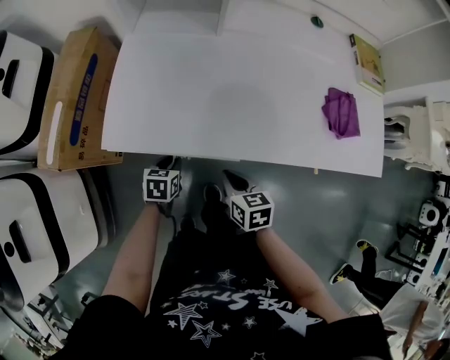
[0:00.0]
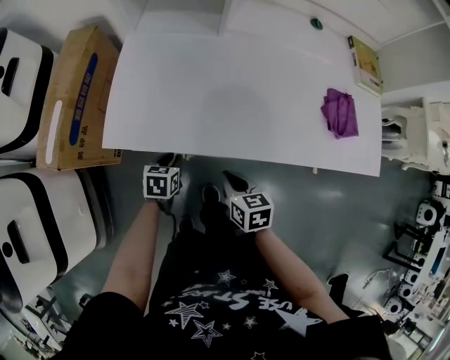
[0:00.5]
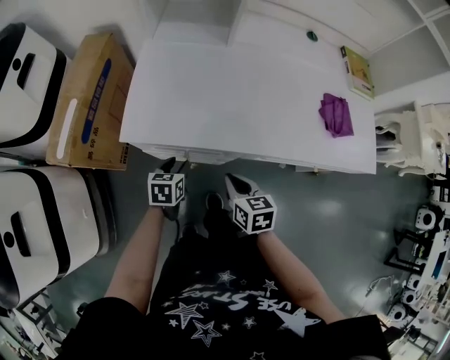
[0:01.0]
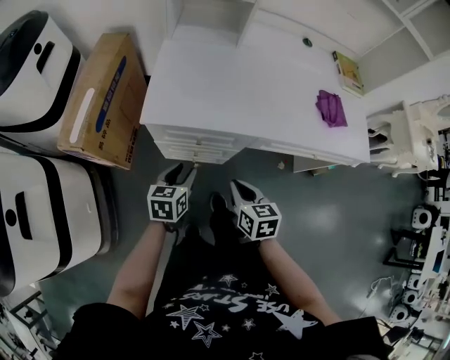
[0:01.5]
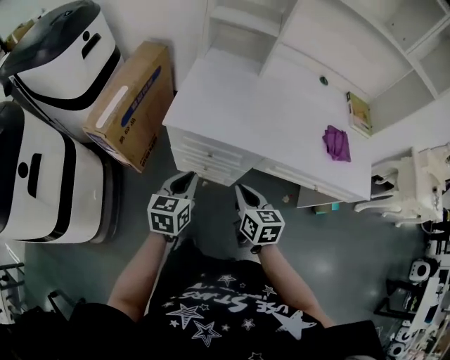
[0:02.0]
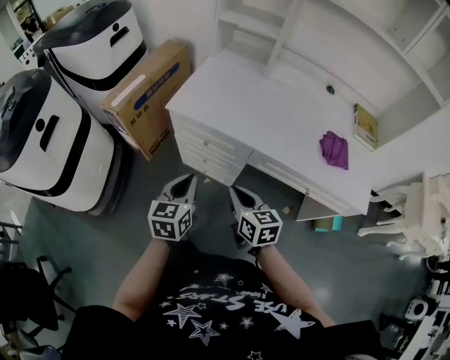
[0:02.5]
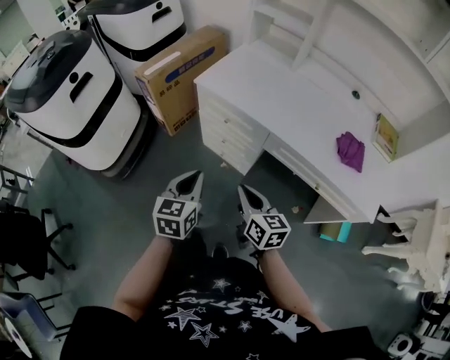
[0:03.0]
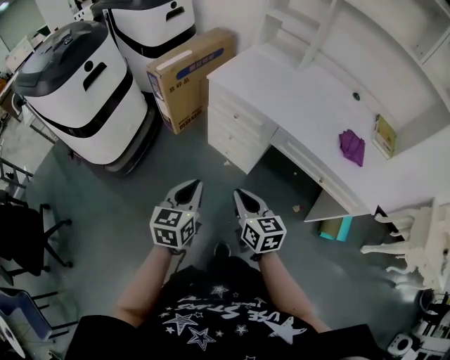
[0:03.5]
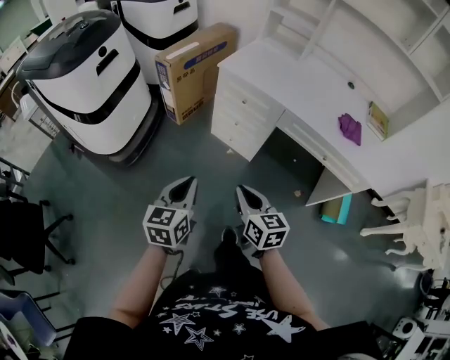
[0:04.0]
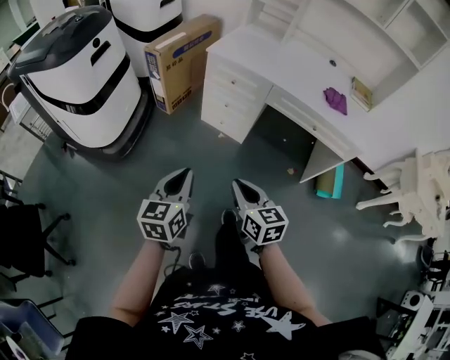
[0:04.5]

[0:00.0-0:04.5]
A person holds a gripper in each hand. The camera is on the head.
0:00.0 to 0:02.0: The right gripper moves upward and backward, about 15 cm, while the left gripper travels upward and backward by about 25 cm, and points its fingers some 30 degrees further upward.
0:02.0 to 0:04.5: The pair of grippers is taken roughly 40 cm. The right gripper turns by roughly 20 degrees; the left gripper changes its angle by approximately 20 degrees.

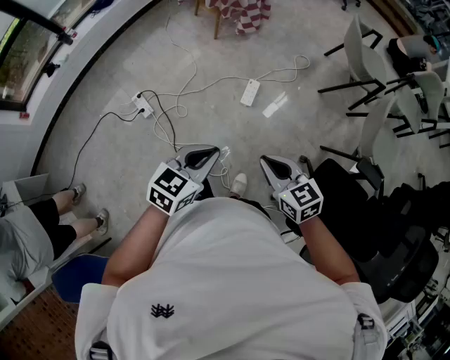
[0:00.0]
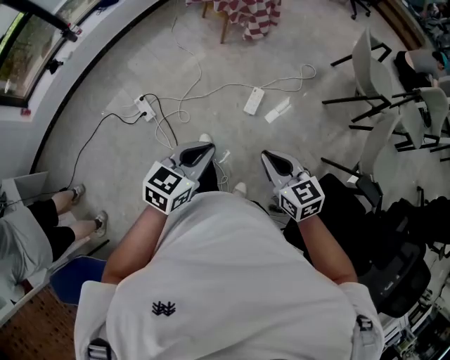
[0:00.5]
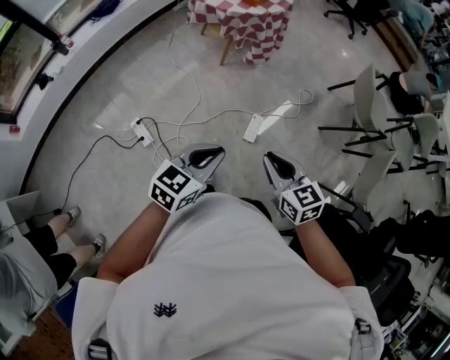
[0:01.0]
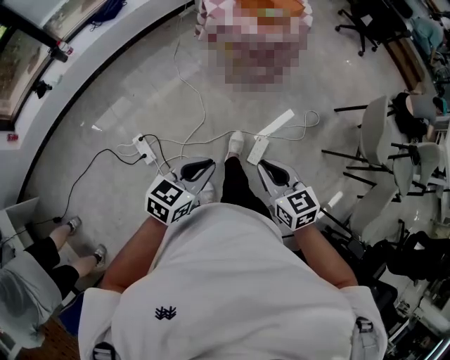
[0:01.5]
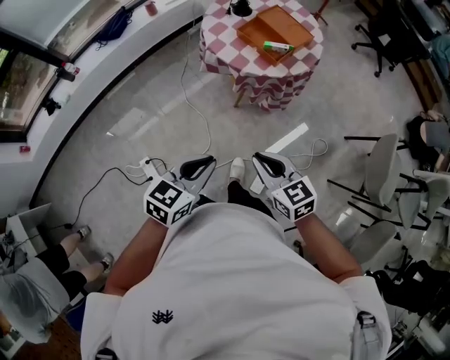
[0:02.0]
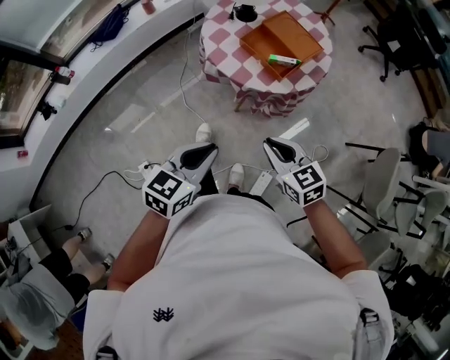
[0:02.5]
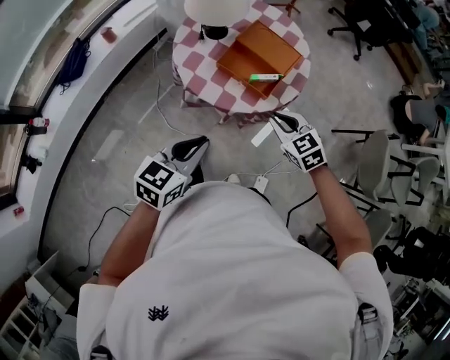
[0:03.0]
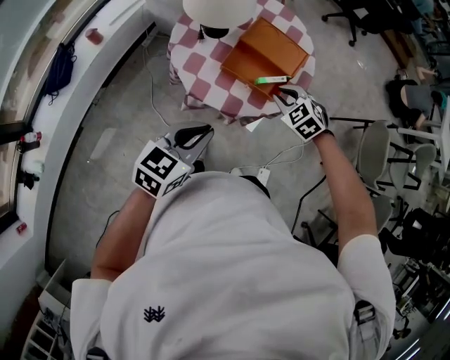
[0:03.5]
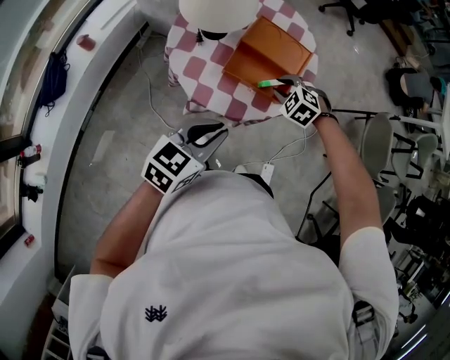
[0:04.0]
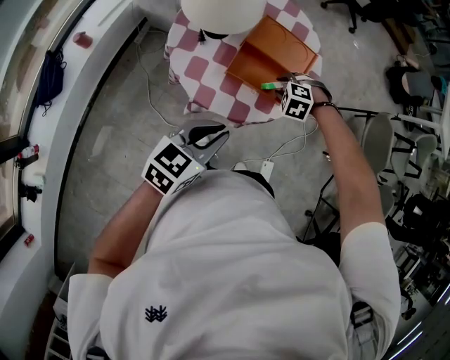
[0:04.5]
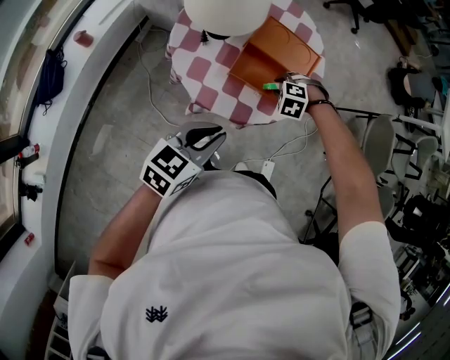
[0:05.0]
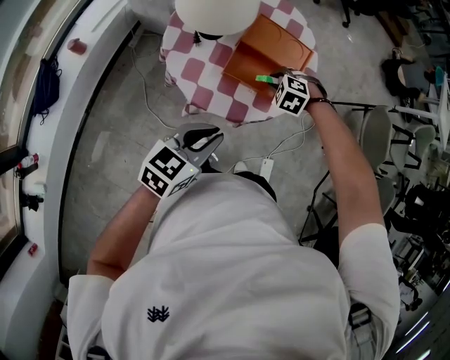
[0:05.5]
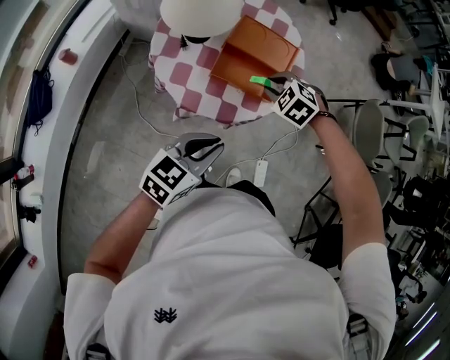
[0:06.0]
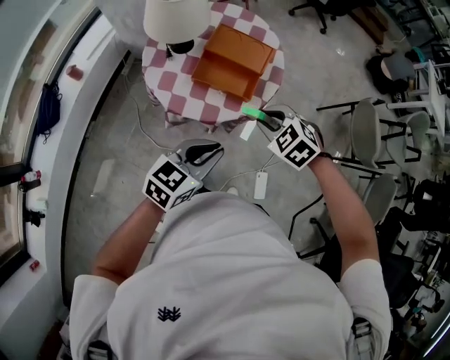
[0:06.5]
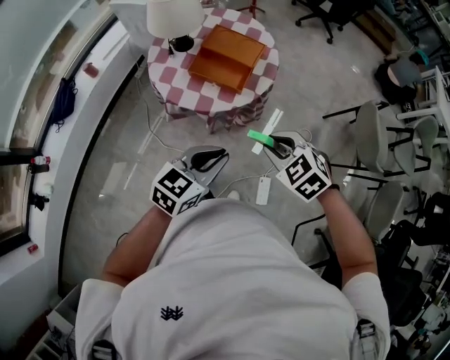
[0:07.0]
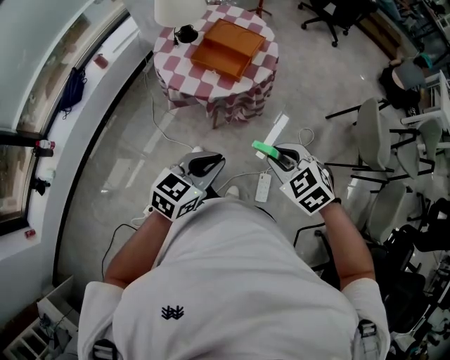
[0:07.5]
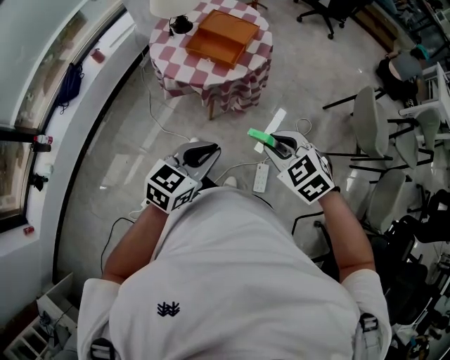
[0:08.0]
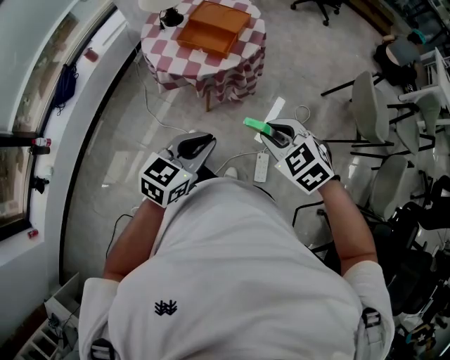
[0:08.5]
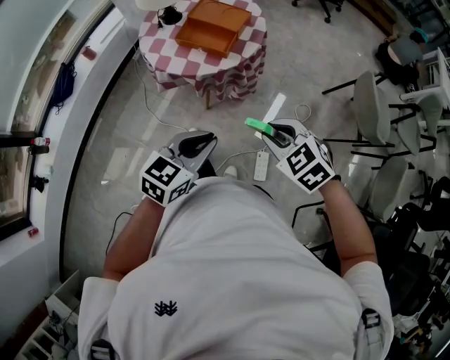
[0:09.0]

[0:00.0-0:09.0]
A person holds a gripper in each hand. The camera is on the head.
0:00.0 to 0:02.0: The two grippers travel together, forward, approximately 60 cm.
0:02.0 to 0:04.5: The left gripper ends up approximately 40 cm from where it was, and changes its angle by roughly 30 degrees; the right gripper shifts by roughly 50 cm, tips its fingers downward by approximately 50 degrees, and opens up.
0:04.5 to 0:07.0: The right gripper moves approximately 35 cm, and turns by some 40 degrees; the left gripper changes place by about 25 cm.
0:07.0 to 0:09.0: The left gripper travels backward by about 10 cm; the right gripper travels backward and to the right by about 10 cm.

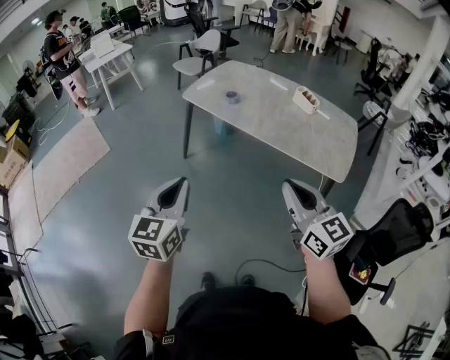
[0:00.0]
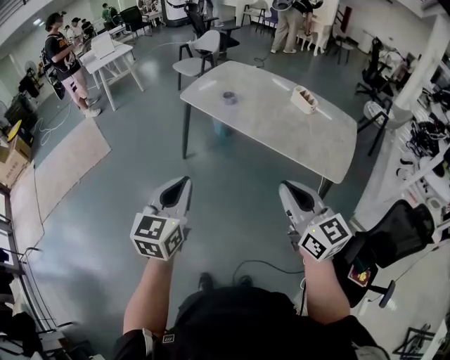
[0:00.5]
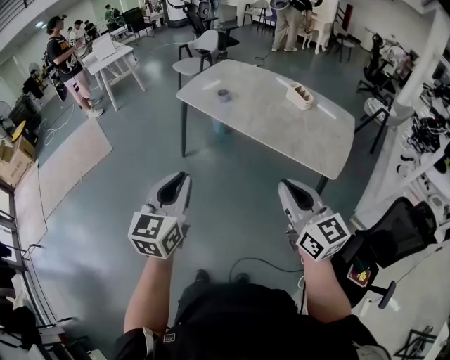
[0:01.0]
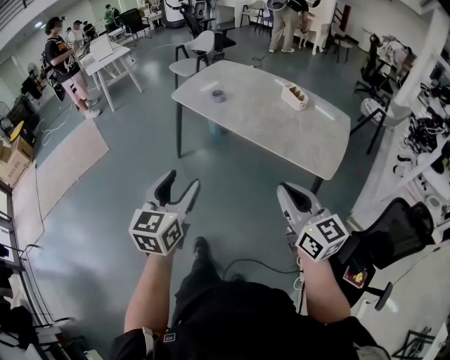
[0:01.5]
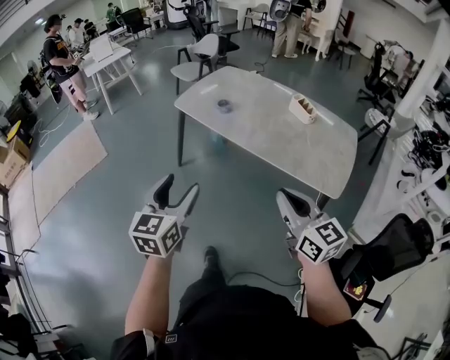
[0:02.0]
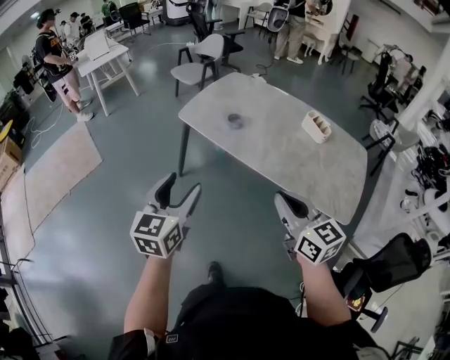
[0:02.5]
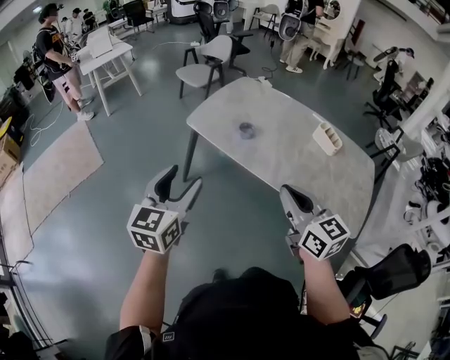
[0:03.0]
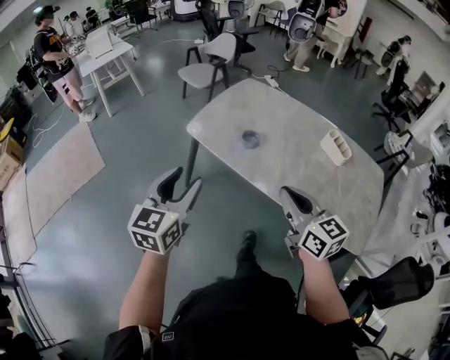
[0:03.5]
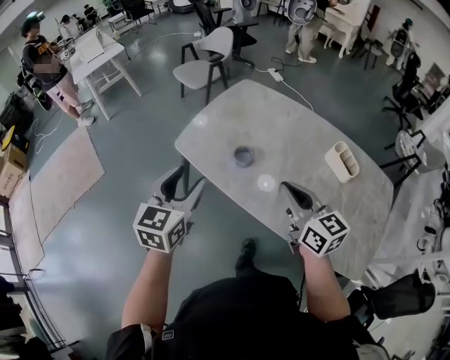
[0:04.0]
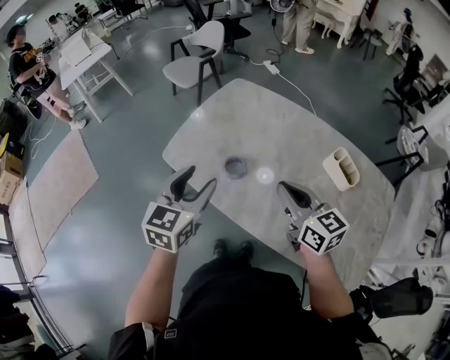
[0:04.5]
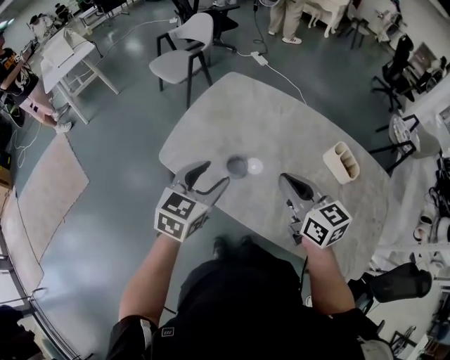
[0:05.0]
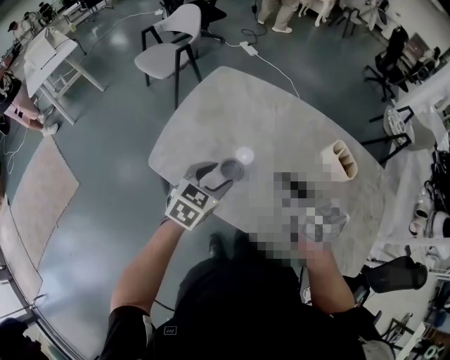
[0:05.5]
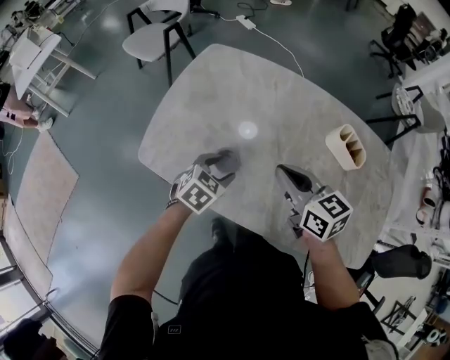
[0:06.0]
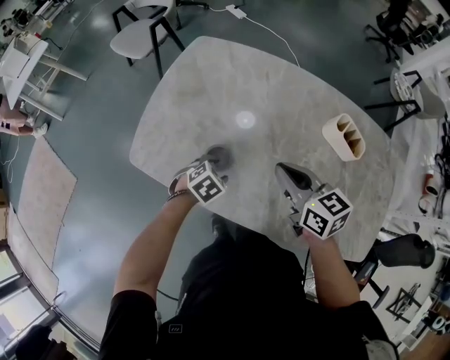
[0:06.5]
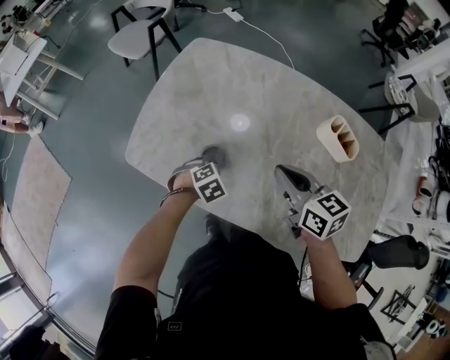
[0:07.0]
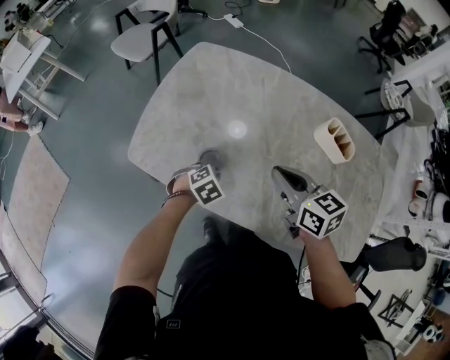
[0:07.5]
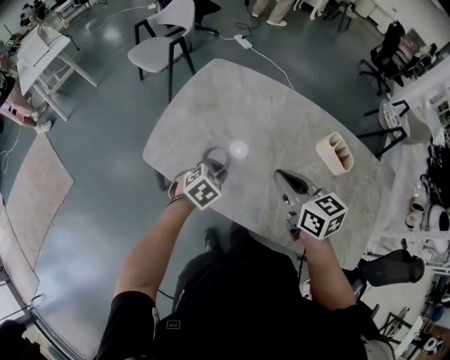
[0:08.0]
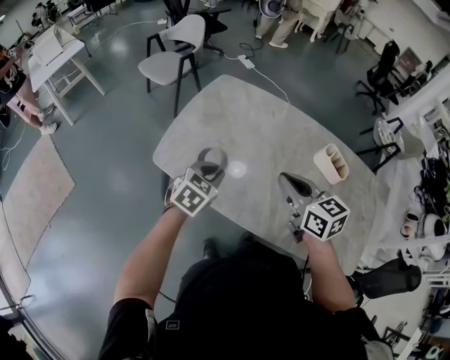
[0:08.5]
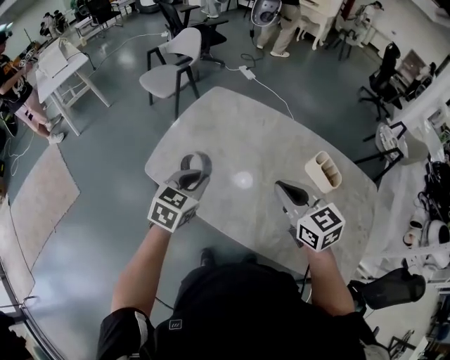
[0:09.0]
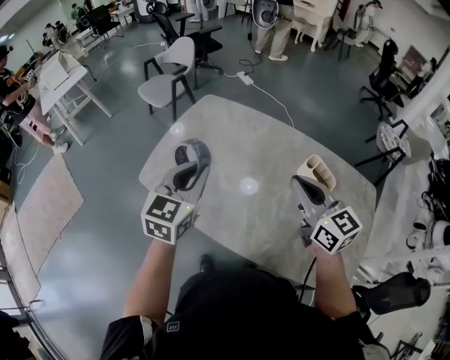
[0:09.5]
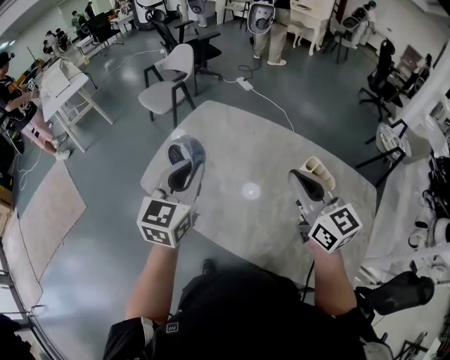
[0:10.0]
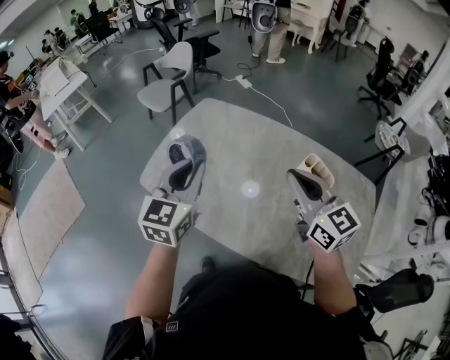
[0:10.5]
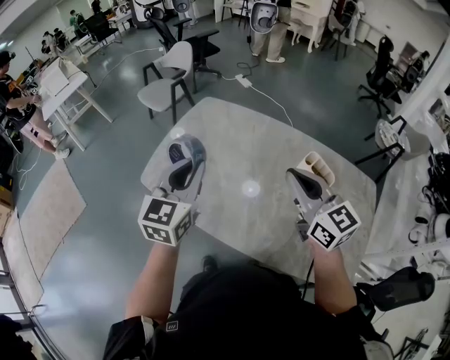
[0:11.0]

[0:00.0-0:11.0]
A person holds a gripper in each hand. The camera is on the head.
0:00.0 to 0:02.0: Both grippers move to the right and forward, some 10 cm. The left gripper opens its fingers.
0:02.0 to 0:03.5: Both grippers move forward, approximately 35 cm.
0:03.5 to 0:05.5: The right gripper is displaced forward by approximately 40 cm, while the left gripper is displaced forward, downward and to the right by approximately 50 cm, and changes its angle by approximately 40 degrees.
0:05.5 to 0:07.5: The left gripper moves downward, about 20 cm, angles its fingers downward, by roughly 30 degrees, and closes; the right gripper heads downward and to the right, covering some 10 cm.
0:07.5 to 0:09.0: The left gripper travels upward by some 25 cm, and tips its fingers upward by about 40 degrees; the right gripper is displaced upward and backward by approximately 15 cm, and turns by approximately 20 degrees.
0:09.0 to 0:11.0: The left gripper moves upward and to the right, roughly 15 cm, and changes its angle by approximately 20 degrees. Meanwhile the right gripper goes roughly 15 cm to the right and upward.

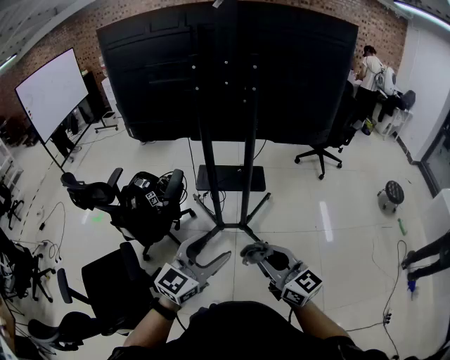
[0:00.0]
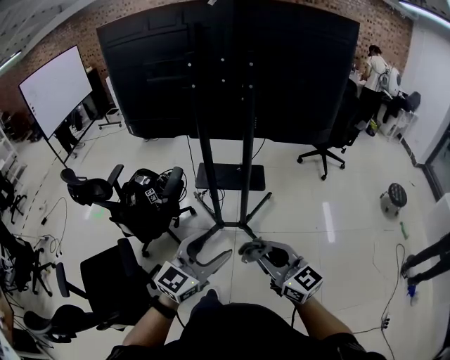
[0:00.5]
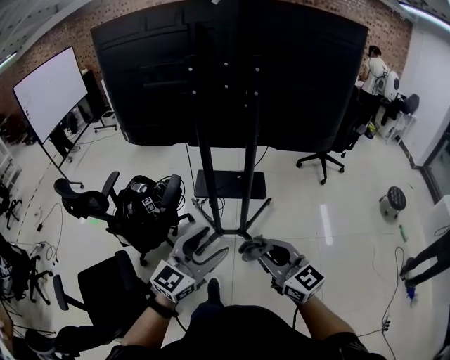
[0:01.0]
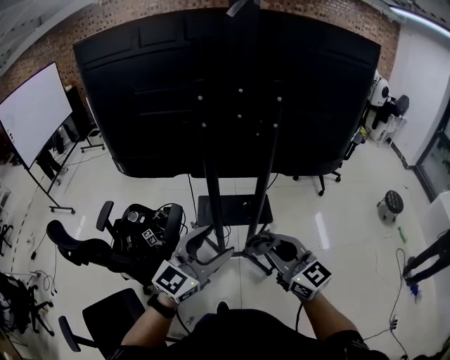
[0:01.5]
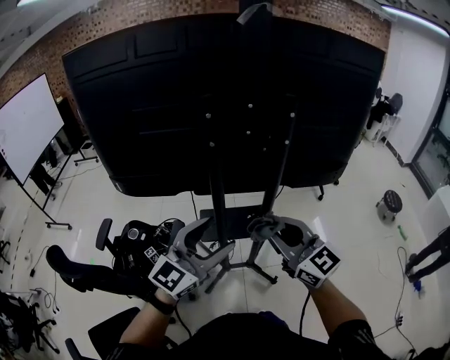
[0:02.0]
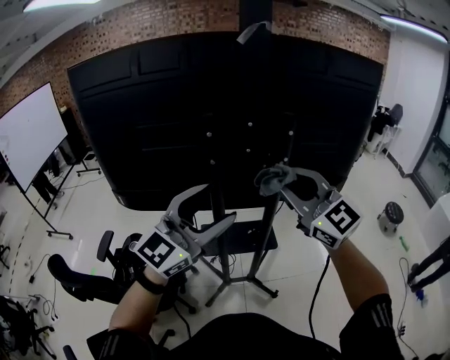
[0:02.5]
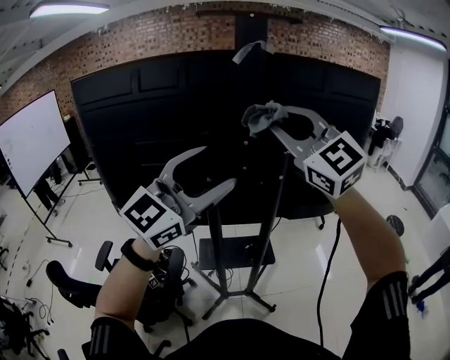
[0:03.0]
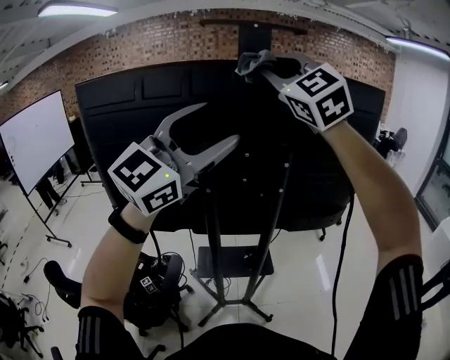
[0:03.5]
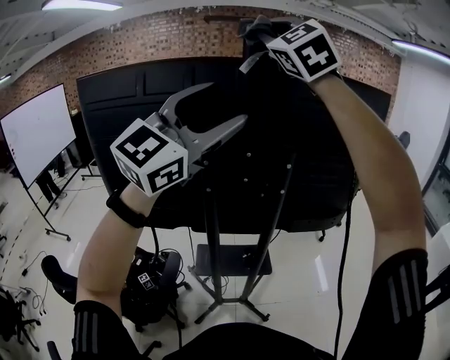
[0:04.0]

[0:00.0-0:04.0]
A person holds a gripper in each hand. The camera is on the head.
0:00.0 to 0:02.0: The two grippers go some 30 cm forward.
0:02.0 to 0:04.0: The left gripper heads upward, covering approximately 35 cm, and changes its angle by approximately 30 degrees. Meanwhile the right gripper goes some 50 cm upward and forward, and rolls counterclockwise, seen from behind, by roughly 50 degrees.
